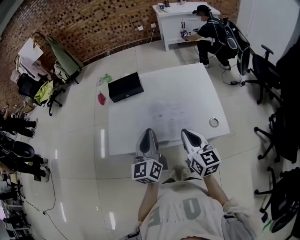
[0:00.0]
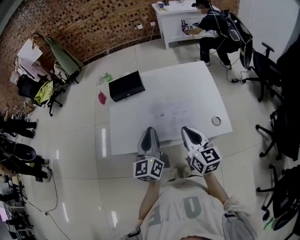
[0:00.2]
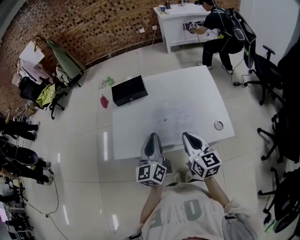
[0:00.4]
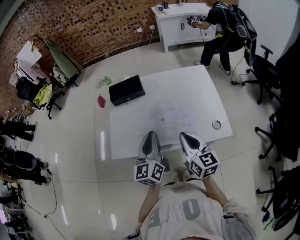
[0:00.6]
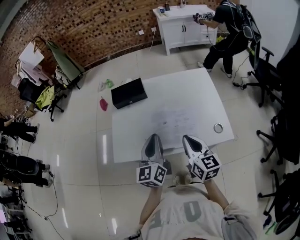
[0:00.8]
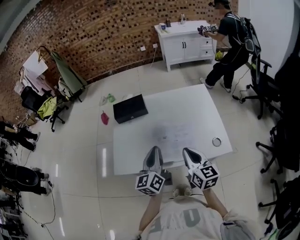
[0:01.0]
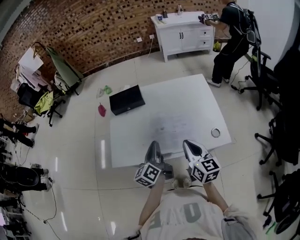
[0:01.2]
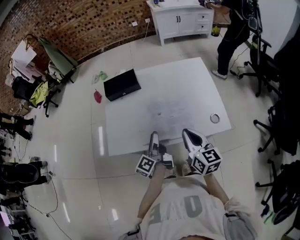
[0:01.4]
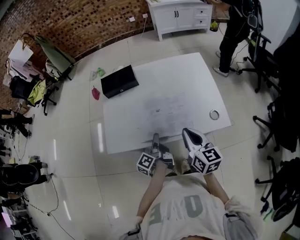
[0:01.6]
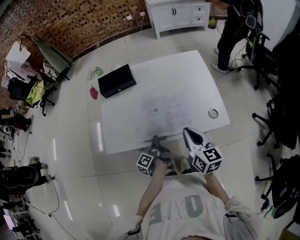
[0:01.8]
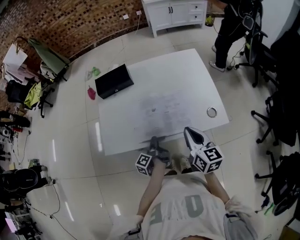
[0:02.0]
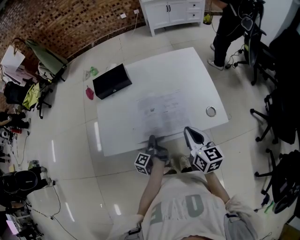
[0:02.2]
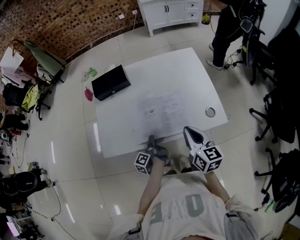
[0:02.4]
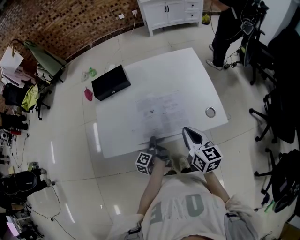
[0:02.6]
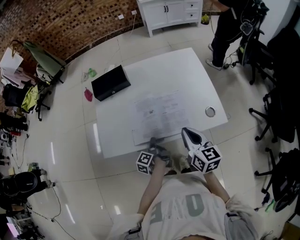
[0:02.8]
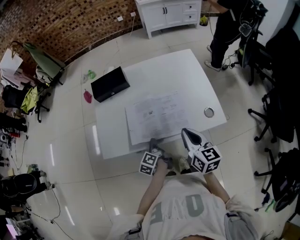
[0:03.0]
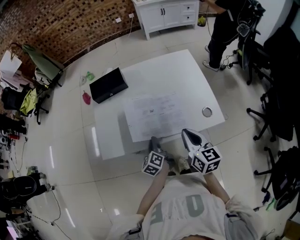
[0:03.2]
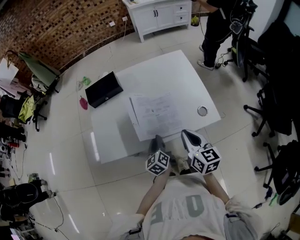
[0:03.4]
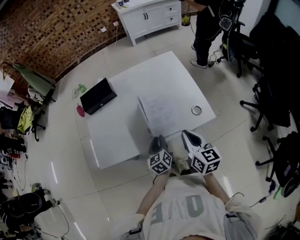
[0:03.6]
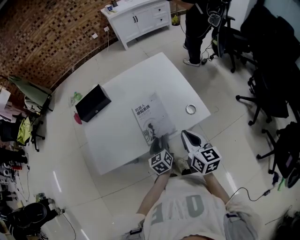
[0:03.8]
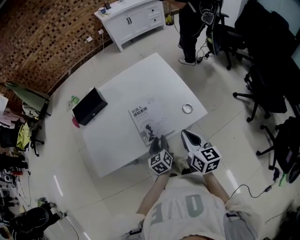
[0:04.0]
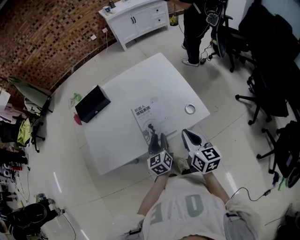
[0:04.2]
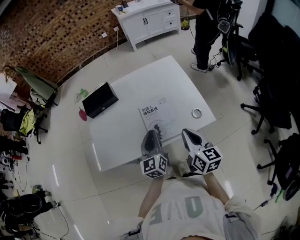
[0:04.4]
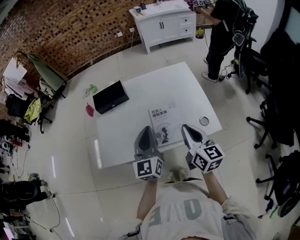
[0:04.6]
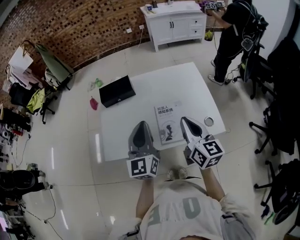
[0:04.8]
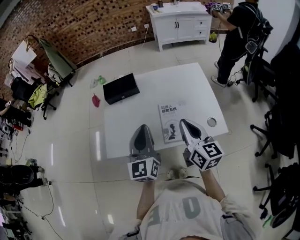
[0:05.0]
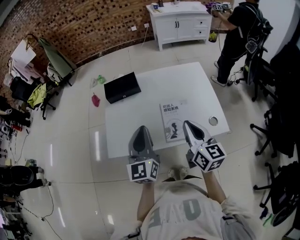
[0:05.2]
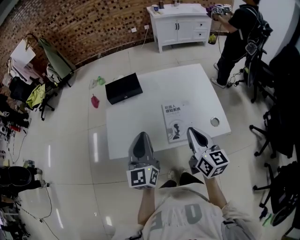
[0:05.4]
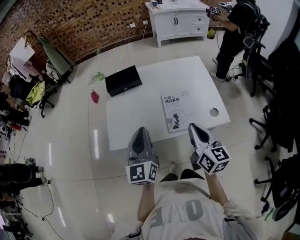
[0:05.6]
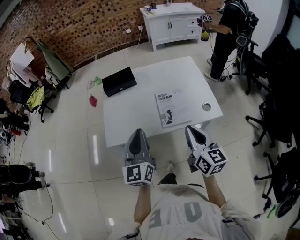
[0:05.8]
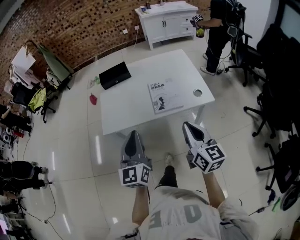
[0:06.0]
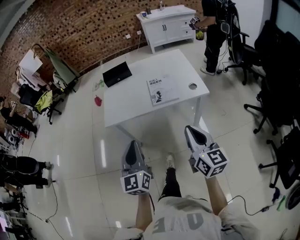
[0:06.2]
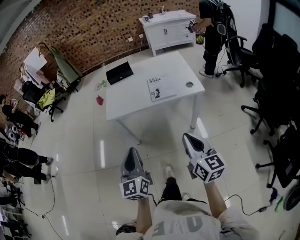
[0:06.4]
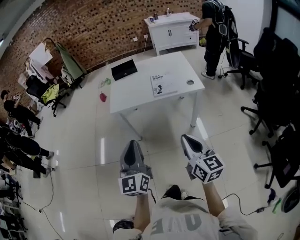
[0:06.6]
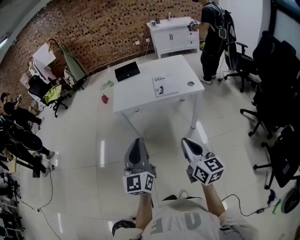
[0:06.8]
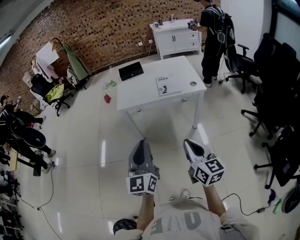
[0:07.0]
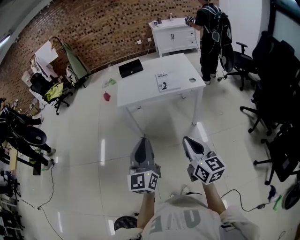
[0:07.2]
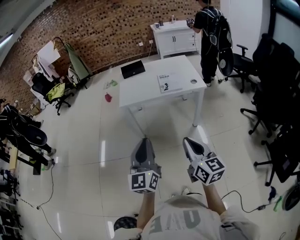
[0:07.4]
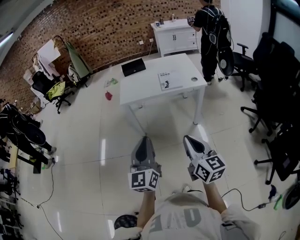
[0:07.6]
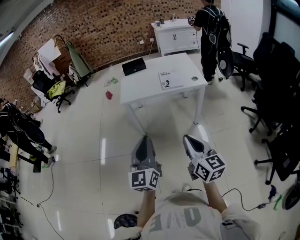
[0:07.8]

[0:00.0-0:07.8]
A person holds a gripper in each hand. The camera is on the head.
0:00.0 to 0:01.6: The left gripper shifts some 20 cm downward, rotates around the line of its fingers by approximately 60 degrees, counterclockwise from behind, and opens.
0:01.6 to 0:03.2: The left gripper moves about 10 cm downward and comes back, swivels approximately 40 degrees, and closes up.
0:03.2 to 0:04.6: The right gripper heads upward, covering approximately 5 cm, while the left gripper is displaced upward by some 20 cm, twists roughly 40 degrees clockwise, seen from behind, and opens and closes again.
0:04.6 to 0:06.2: The two grippers go approximately 30 cm backward.
0:06.2 to 0:07.8: The left gripper shifts approximately 25 cm backward. The right gripper goes approximately 30 cm backward and to the left.

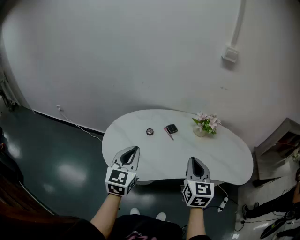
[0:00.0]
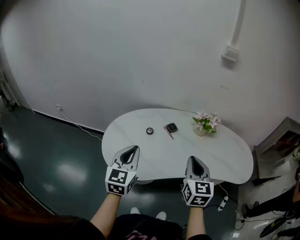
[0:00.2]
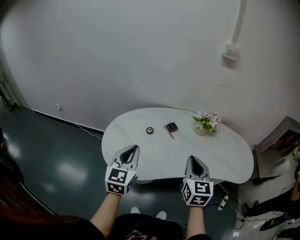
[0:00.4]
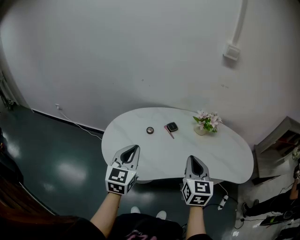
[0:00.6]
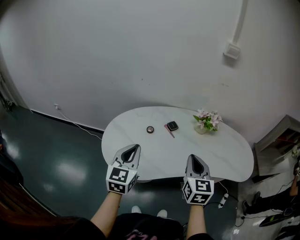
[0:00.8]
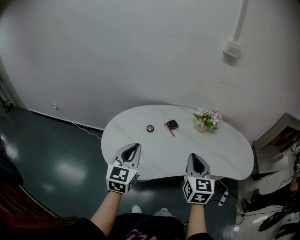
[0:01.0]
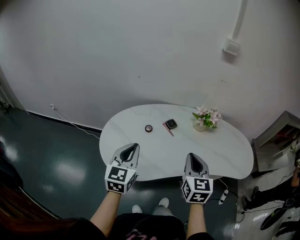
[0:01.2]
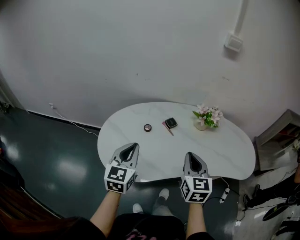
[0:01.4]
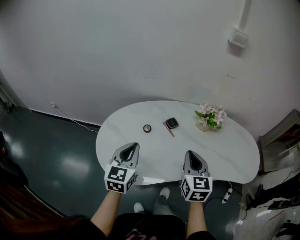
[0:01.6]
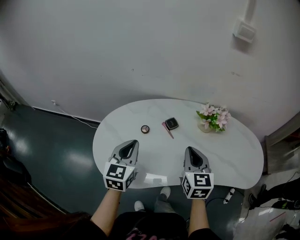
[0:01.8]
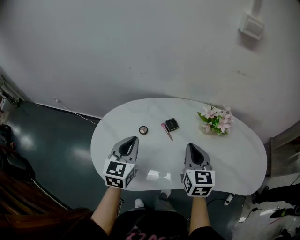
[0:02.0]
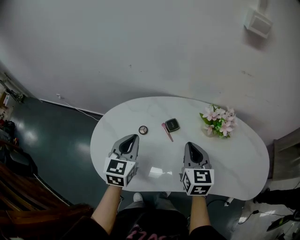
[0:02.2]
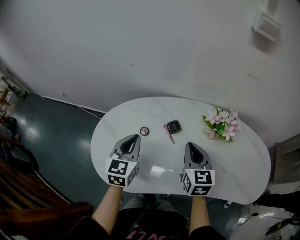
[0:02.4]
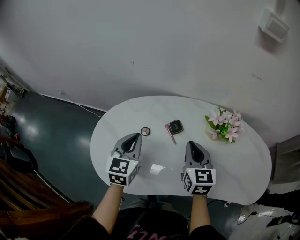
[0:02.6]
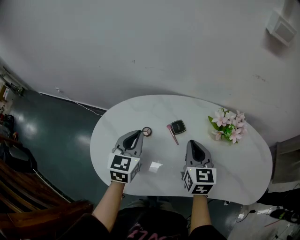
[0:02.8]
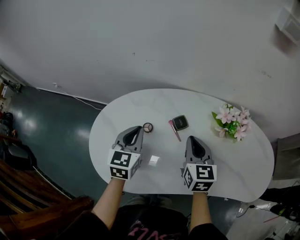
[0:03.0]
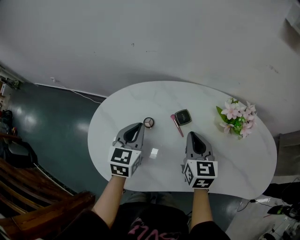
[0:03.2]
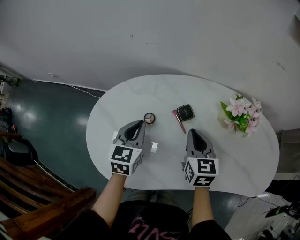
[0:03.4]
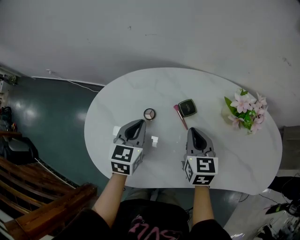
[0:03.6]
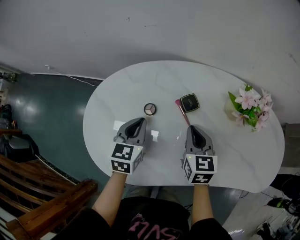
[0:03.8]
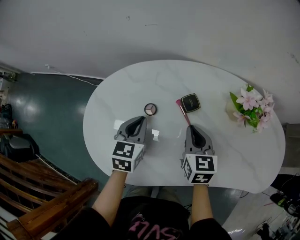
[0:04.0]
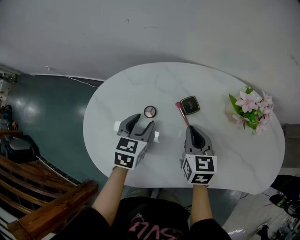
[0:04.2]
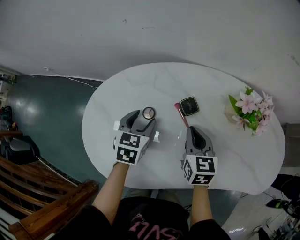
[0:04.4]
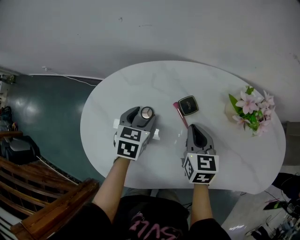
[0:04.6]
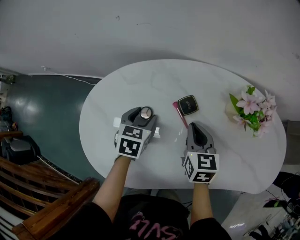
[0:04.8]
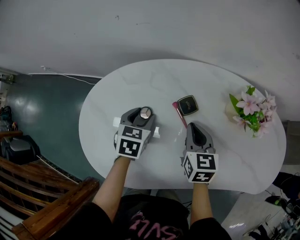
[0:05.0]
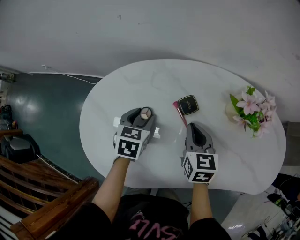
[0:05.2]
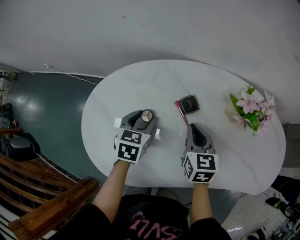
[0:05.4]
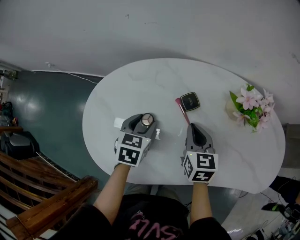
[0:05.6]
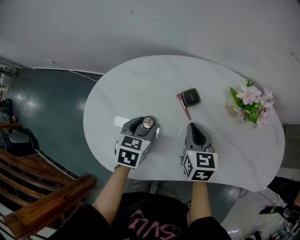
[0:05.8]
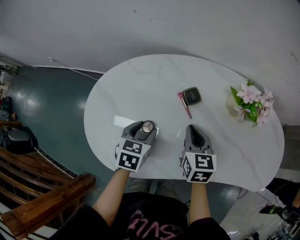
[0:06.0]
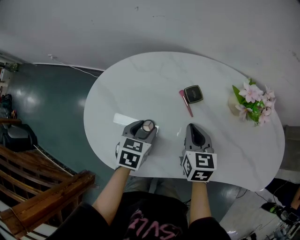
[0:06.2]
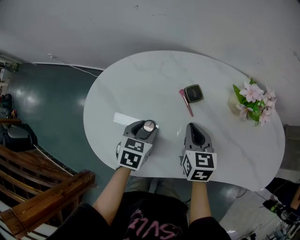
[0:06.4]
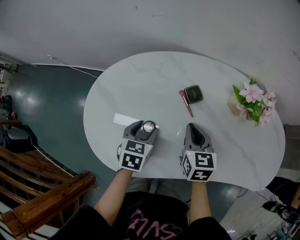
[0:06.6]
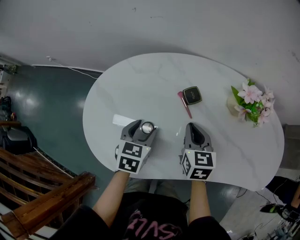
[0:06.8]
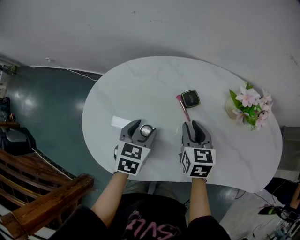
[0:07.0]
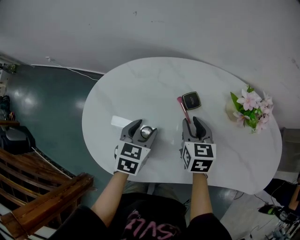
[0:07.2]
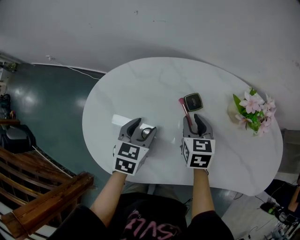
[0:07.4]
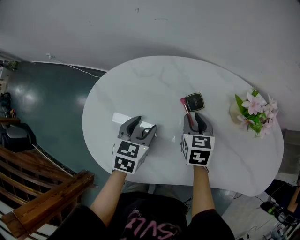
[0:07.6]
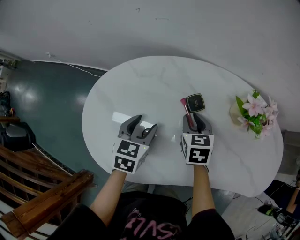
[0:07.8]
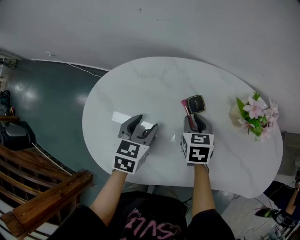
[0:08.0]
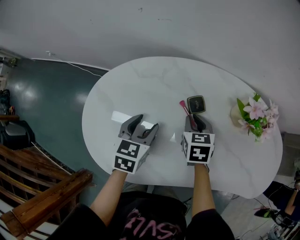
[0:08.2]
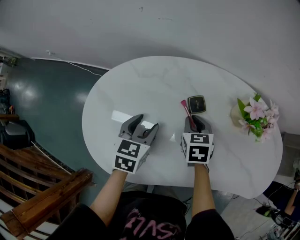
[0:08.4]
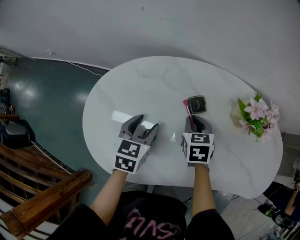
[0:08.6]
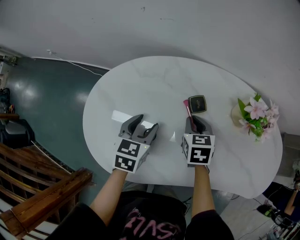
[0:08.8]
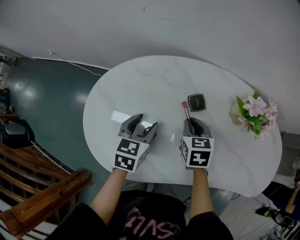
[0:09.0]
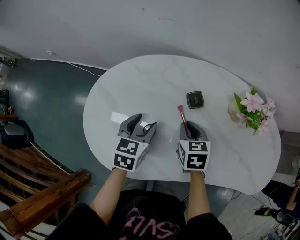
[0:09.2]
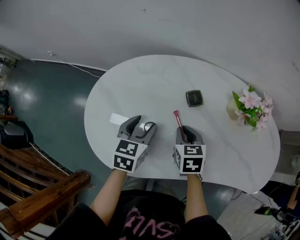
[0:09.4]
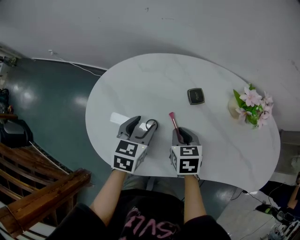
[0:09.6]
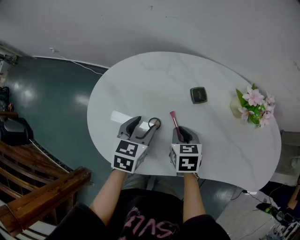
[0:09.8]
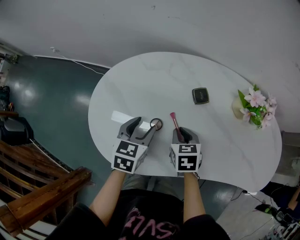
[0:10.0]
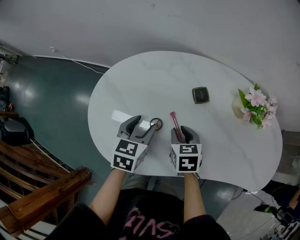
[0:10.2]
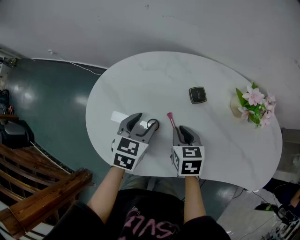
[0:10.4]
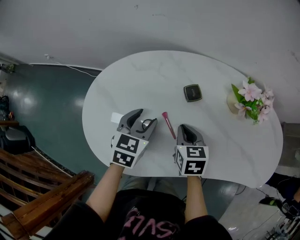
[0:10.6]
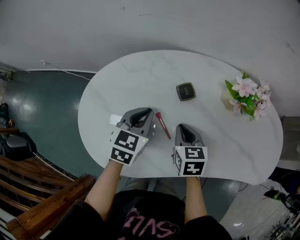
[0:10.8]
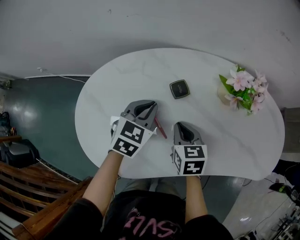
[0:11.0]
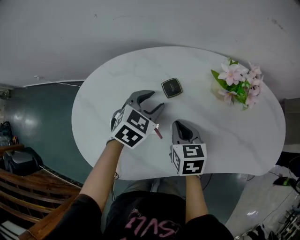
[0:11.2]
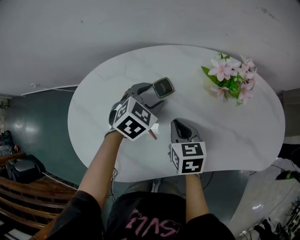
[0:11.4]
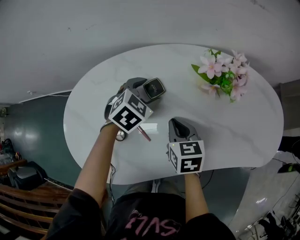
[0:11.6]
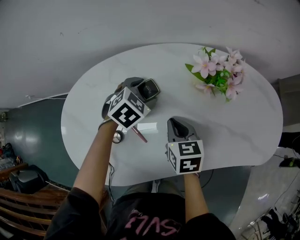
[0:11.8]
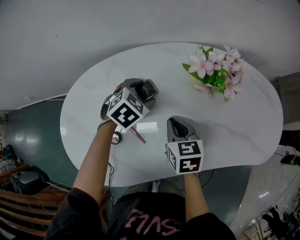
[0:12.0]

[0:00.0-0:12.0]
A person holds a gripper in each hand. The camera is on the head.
0:00.0 to 0:01.6: The grippers both shift forward by about 10 cm.
0:01.6 to 0:03.0: Both grippers move forward and downward, roughly 20 cm.
0:03.0 to 0:04.4: Both grippers travel together downward, some 10 cm. The left gripper opens.
0:04.4 to 0:06.0: The left gripper goes roughly 10 cm backward.
0:06.0 to 0:07.6: The right gripper goes some 5 cm forward, and opens up.
0:07.6 to 0:09.0: The grippers move only a little.
0:09.0 to 0:10.4: The right gripper goes approximately 5 cm backward.
0:10.4 to 0:12.0: The right gripper shifts about 10 cm to the right, while the left gripper shifts roughly 25 cm to the right and forward, rotates about 50 degrees, and closes, then reopens.

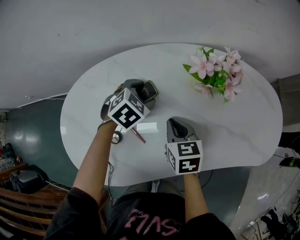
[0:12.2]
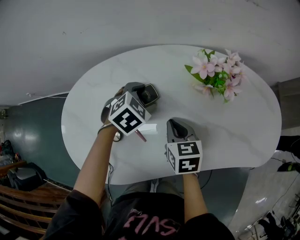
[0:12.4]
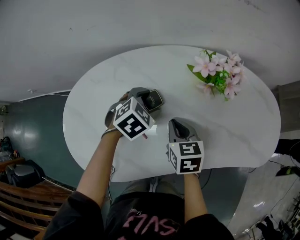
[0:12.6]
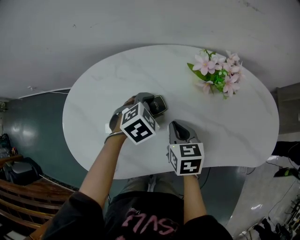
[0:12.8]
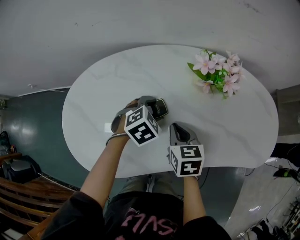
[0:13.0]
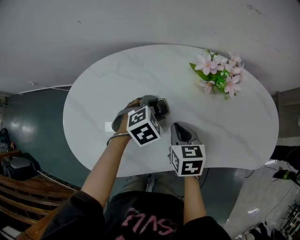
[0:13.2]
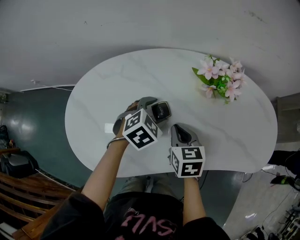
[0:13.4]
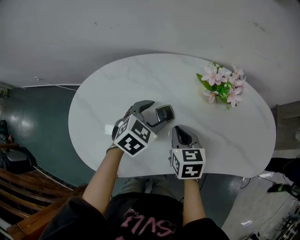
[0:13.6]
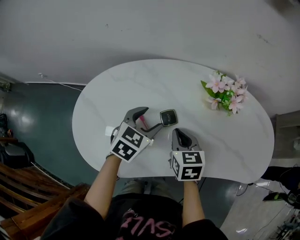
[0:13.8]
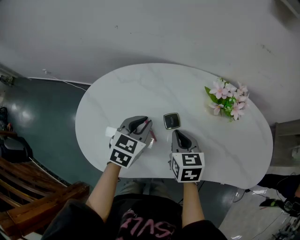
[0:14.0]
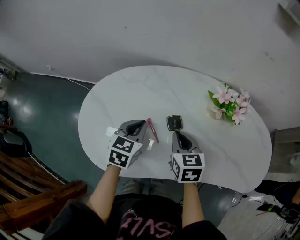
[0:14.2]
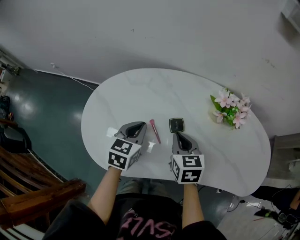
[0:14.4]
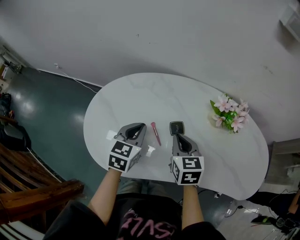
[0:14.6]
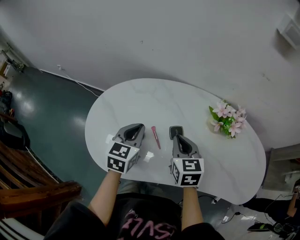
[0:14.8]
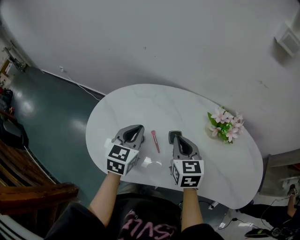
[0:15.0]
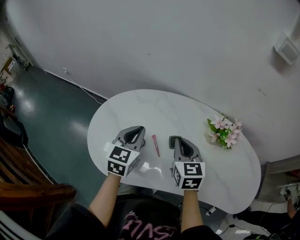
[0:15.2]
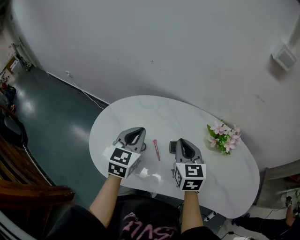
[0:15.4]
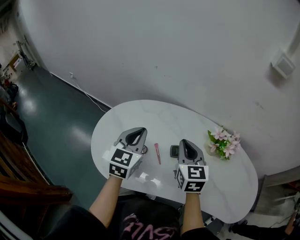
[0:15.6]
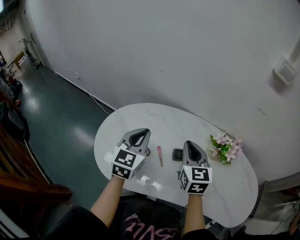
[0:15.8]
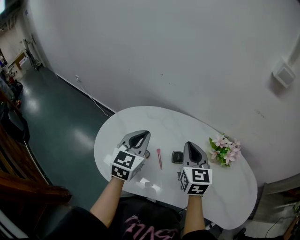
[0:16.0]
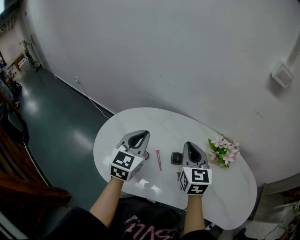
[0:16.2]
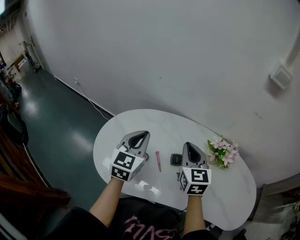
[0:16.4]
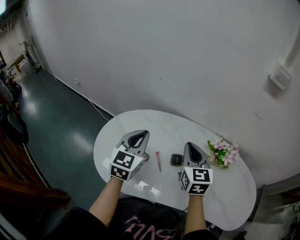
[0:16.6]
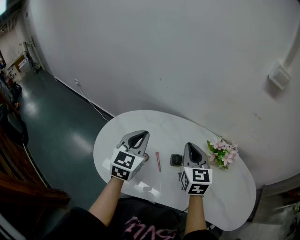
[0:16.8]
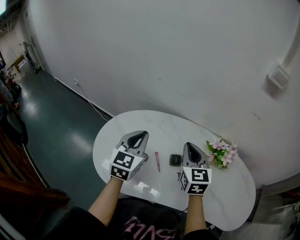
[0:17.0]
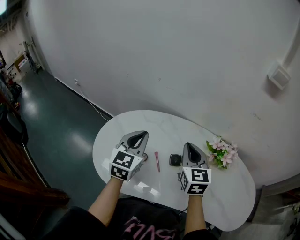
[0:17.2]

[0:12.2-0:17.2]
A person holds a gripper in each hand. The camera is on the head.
0:12.2 to 0:13.8: The right gripper changes place by some 5 cm, while the left gripper travels backward and upward by about 15 cm, and changes its angle by roughly 30 degrees.
0:13.8 to 0:15.6: The left gripper travels upward and to the left by approximately 20 cm, turns by about 40 degrees, and closes up; the right gripper shifts approximately 15 cm upward, and rotates roughly 30 degrees.
0:15.6 to 0:17.2: There are only small adjustments of the grippers.
